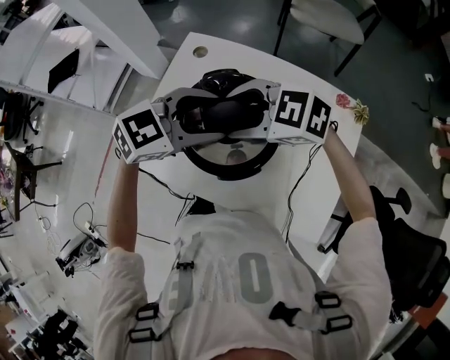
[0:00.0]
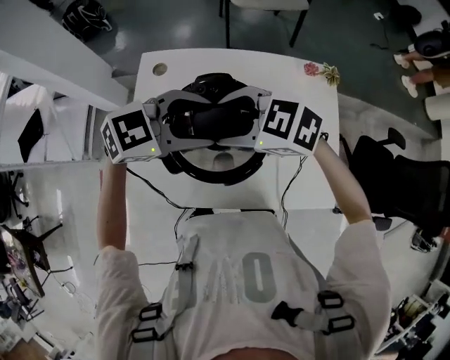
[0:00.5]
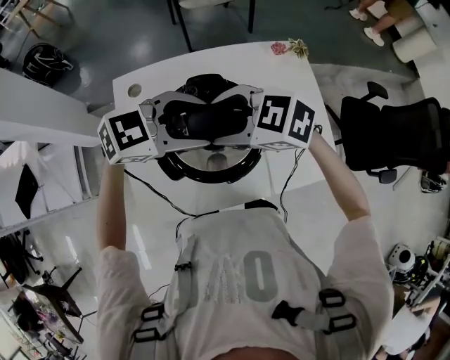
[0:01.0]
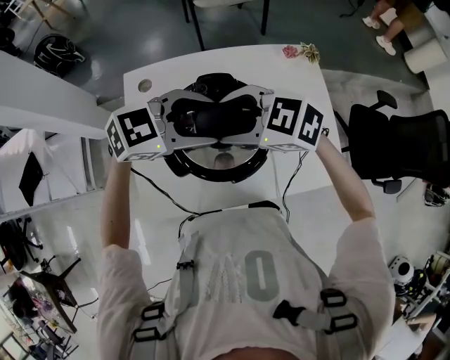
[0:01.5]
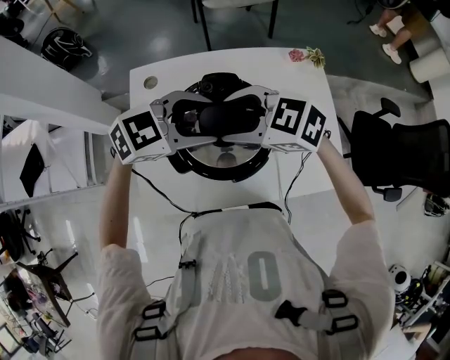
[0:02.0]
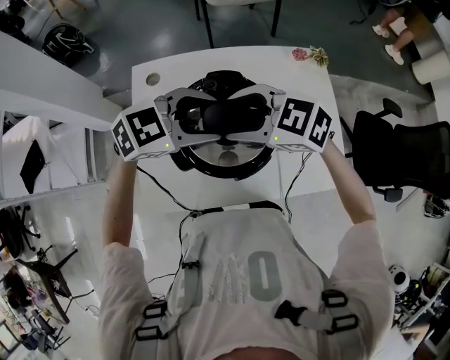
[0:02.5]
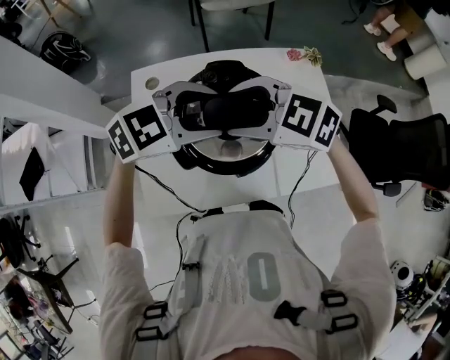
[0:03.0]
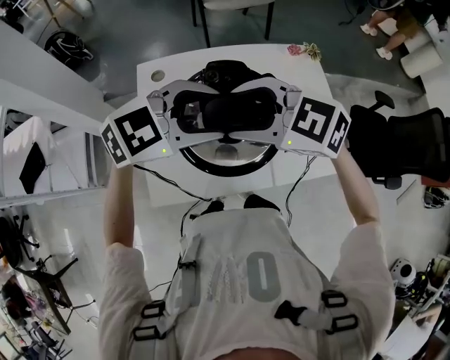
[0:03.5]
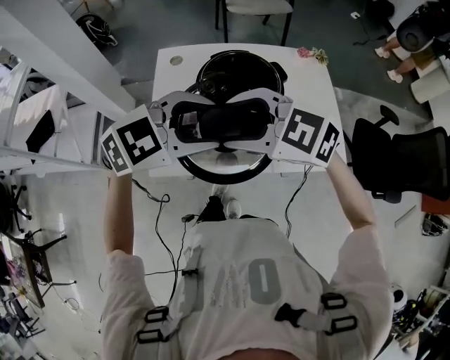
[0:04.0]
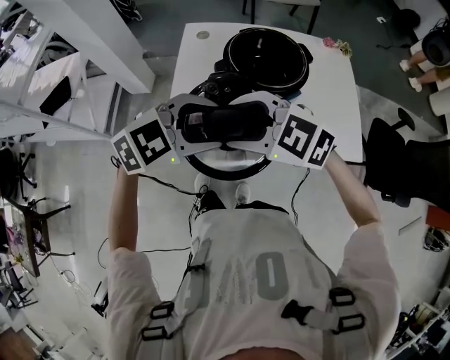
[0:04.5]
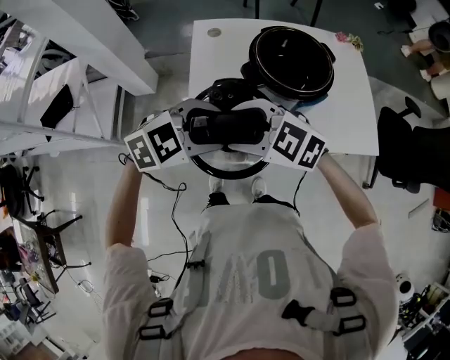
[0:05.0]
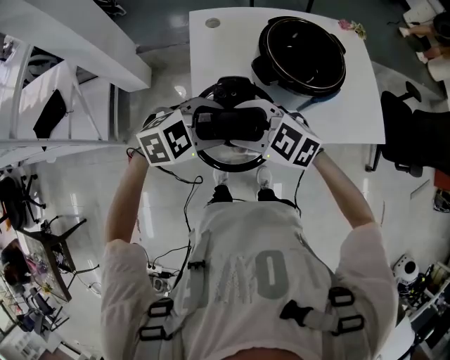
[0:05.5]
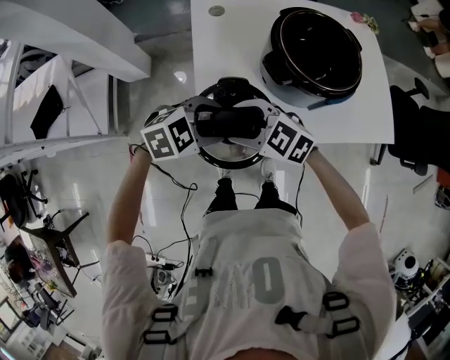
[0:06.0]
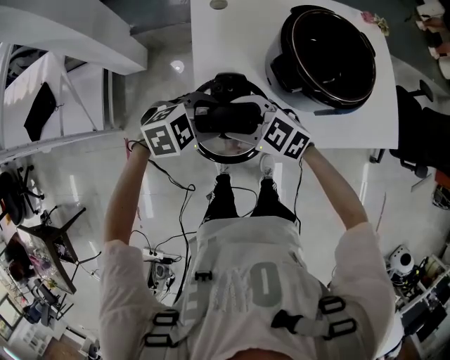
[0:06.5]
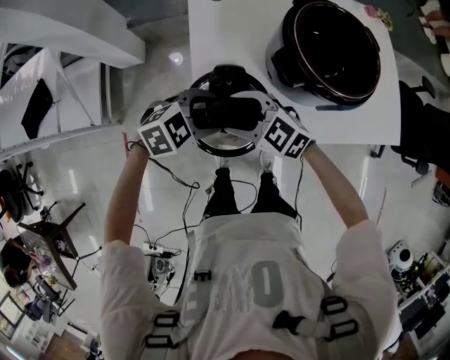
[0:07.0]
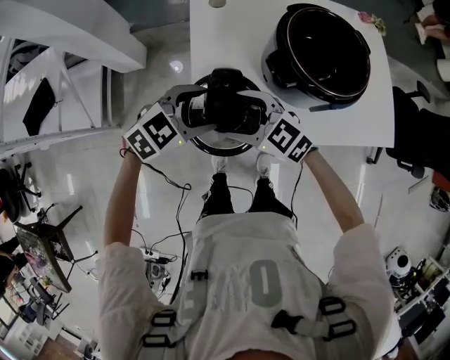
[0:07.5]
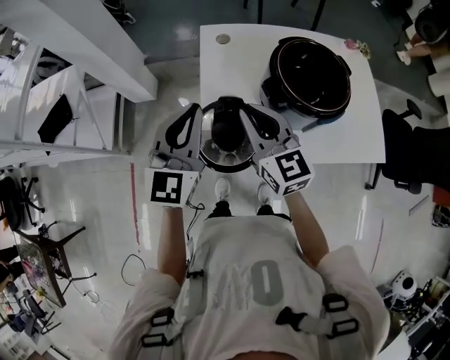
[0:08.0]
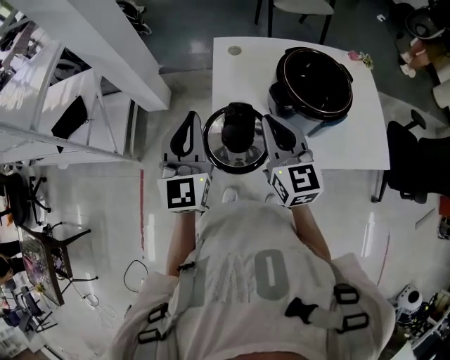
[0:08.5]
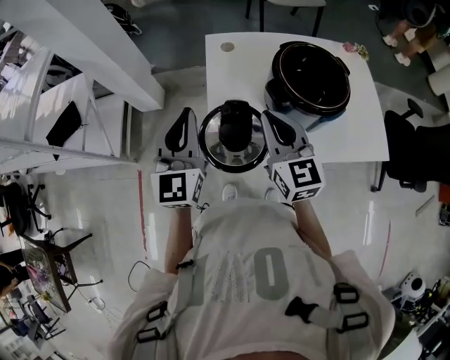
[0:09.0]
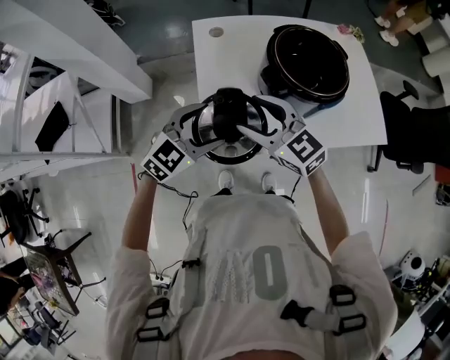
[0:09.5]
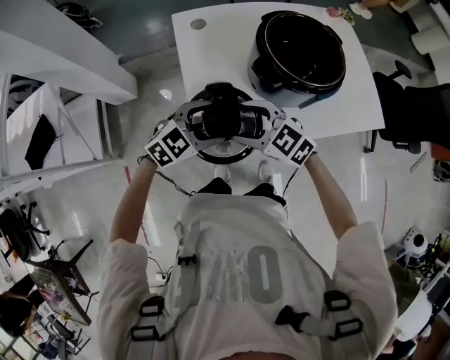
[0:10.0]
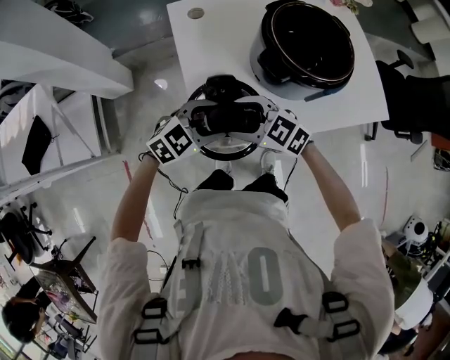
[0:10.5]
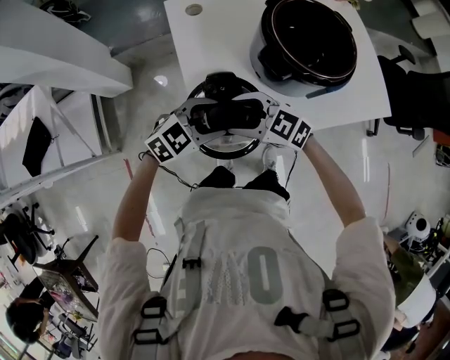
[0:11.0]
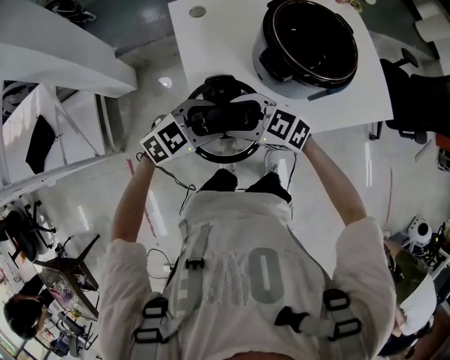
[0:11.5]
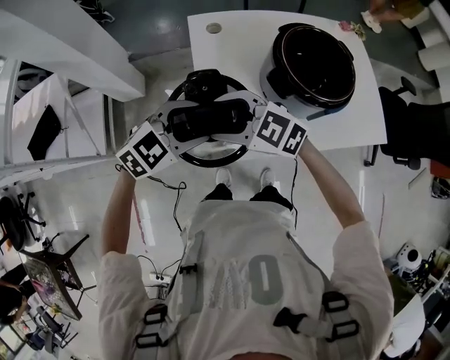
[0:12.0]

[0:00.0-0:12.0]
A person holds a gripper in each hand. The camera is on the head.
0:00.0 to 0:02.0: The left gripper swivels approximately 30 degrees. Meanwhile the right gripper swivels some 30 degrees.
0:02.0 to 0:04.0: The left gripper shifts by some 20 cm, while the right gripper changes place by approximately 20 cm.
0:04.0 to 0:06.0: Both grippers move downward, approximately 20 cm. The left gripper swivels roughly 20 degrees.
0:06.0 to 0:08.0: The grippers both shift upward by about 15 cm. The right gripper swivels roughly 50 degrees, and closes up; the left gripper points its fingers some 50 degrees further upward, and closes.
0:08.0 to 0:10.0: The right gripper goes roughly 15 cm downward, rotates about 40 degrees, and opens its fingers, while the left gripper shifts approximately 20 cm downward, tilts its fingers about 30 degrees downward, and opens its fingers.
0:10.0 to 0:12.0: The left gripper travels upward by some 10 cm. Meanwhile the right gripper moves roughly 10 cm.

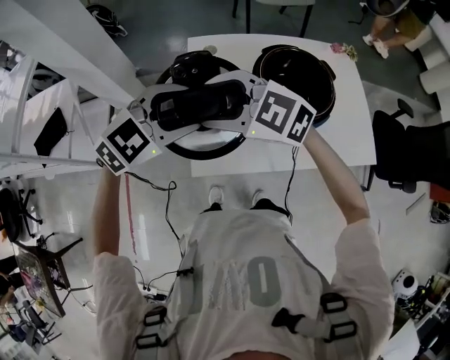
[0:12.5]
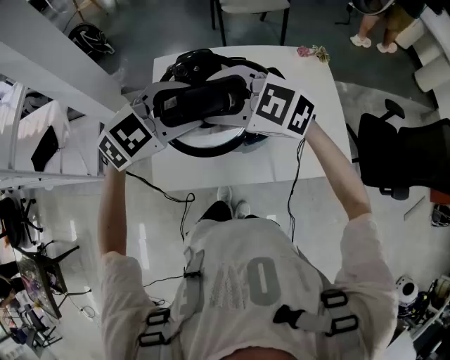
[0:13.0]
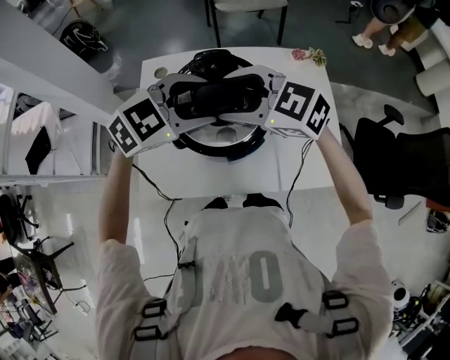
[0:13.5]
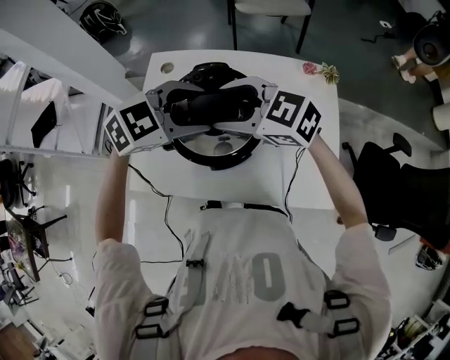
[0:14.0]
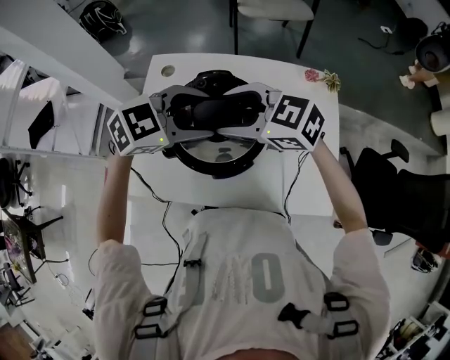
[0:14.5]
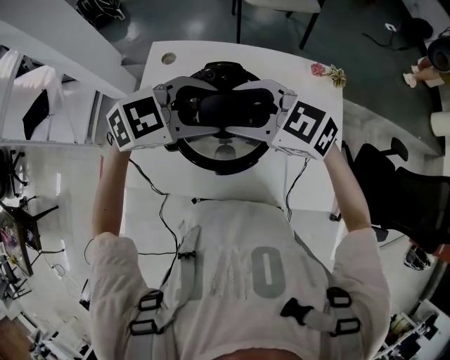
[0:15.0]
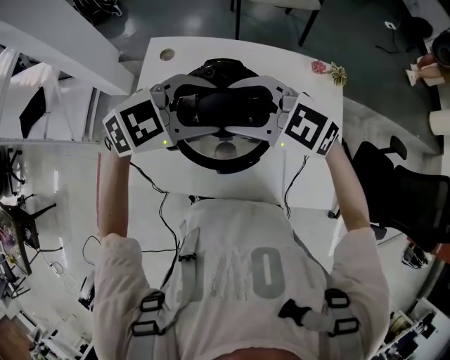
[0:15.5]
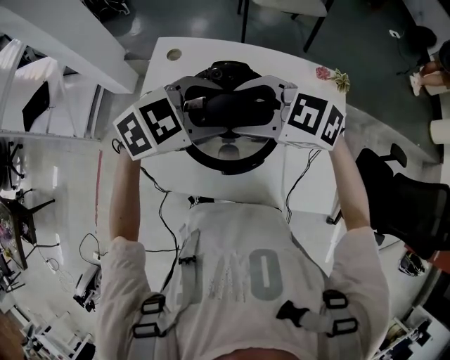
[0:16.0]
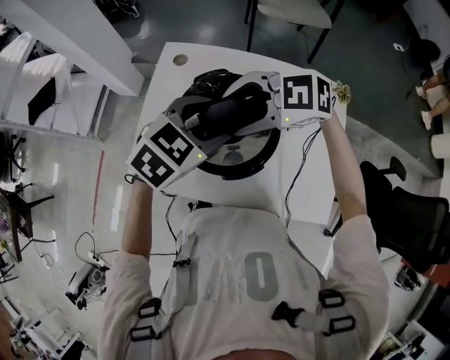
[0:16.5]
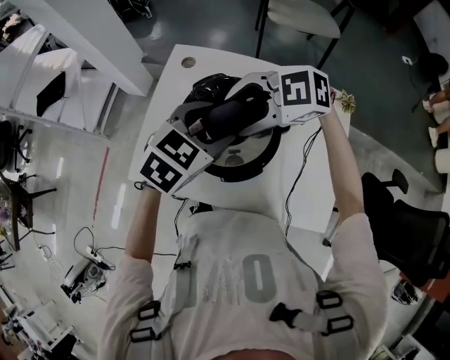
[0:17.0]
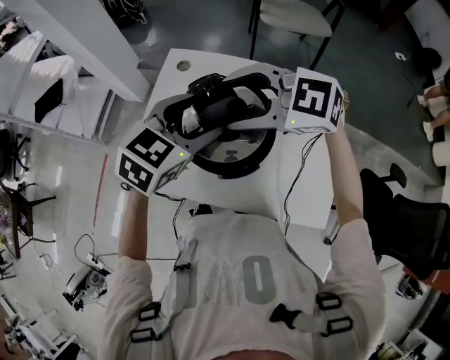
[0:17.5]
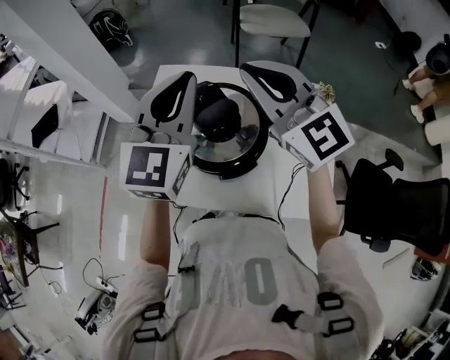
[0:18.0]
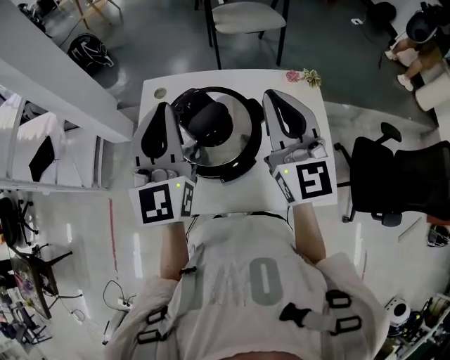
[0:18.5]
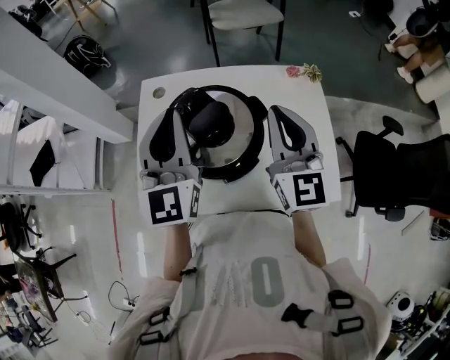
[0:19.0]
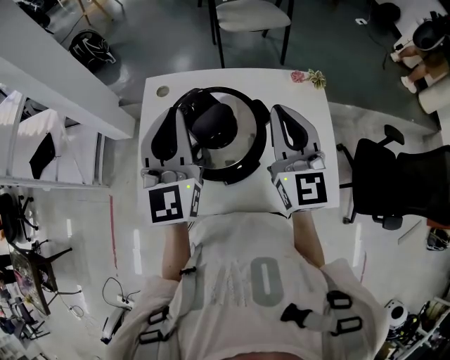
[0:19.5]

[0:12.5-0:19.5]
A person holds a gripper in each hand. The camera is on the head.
0:12.5 to 0:14.5: The right gripper moves about 30 cm. Meanwhile the left gripper moves about 30 cm.
0:14.5 to 0:16.0: The grippers move only a little.
0:16.0 to 0:17.5: The right gripper travels upward by some 5 cm; the left gripper moves approximately 5 cm, and swivels some 40 degrees.
0:17.5 to 0:19.5: The right gripper moves roughly 10 cm upward and comes back, angles its fingers upward, by approximately 30 degrees, and closes. The left gripper heads upward, covering roughly 10 cm, angles its fingers upward, by about 40 degrees, and closes its fingers.

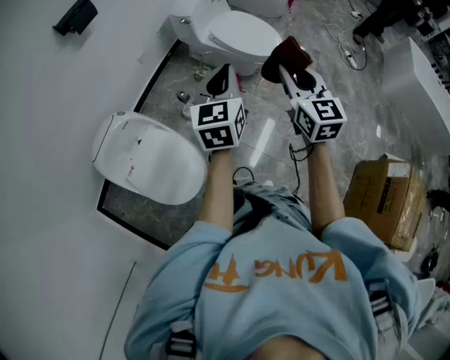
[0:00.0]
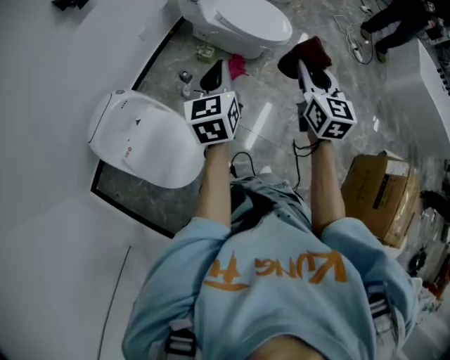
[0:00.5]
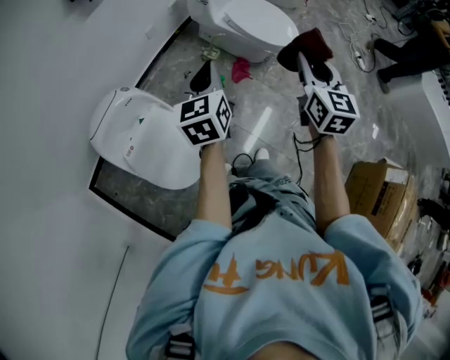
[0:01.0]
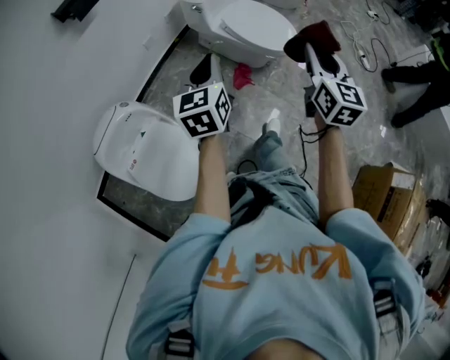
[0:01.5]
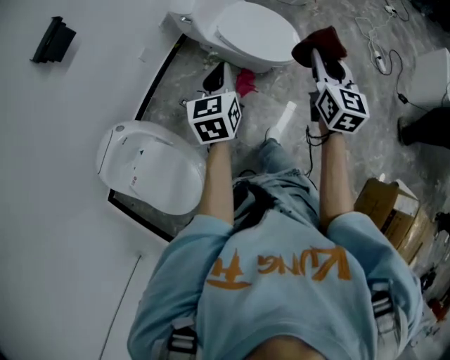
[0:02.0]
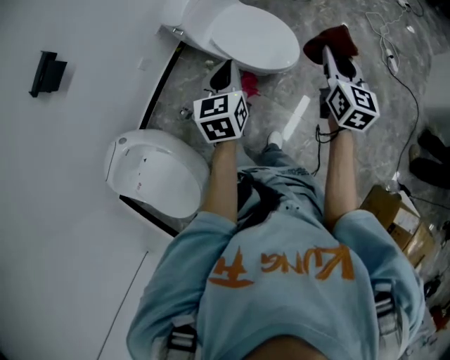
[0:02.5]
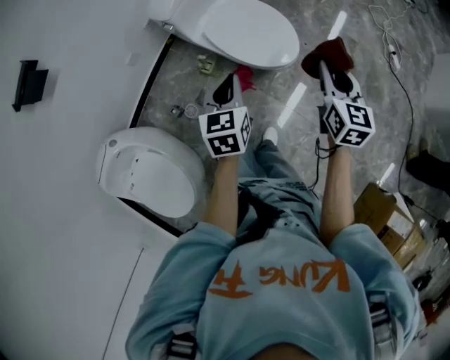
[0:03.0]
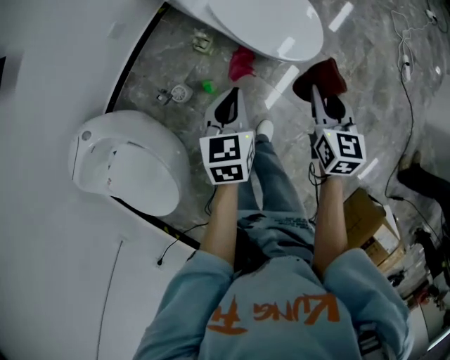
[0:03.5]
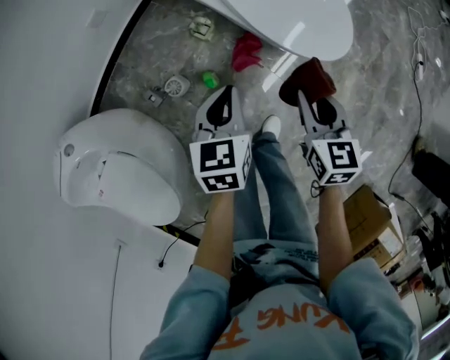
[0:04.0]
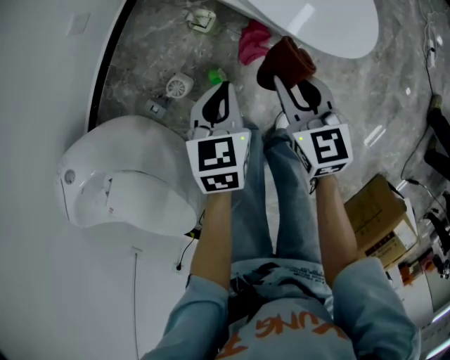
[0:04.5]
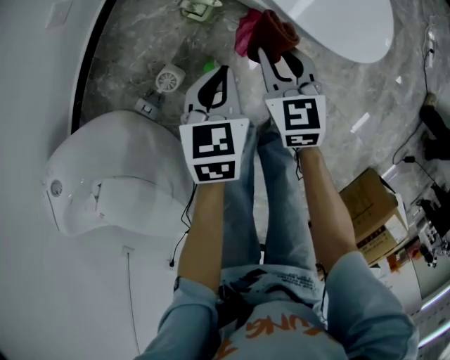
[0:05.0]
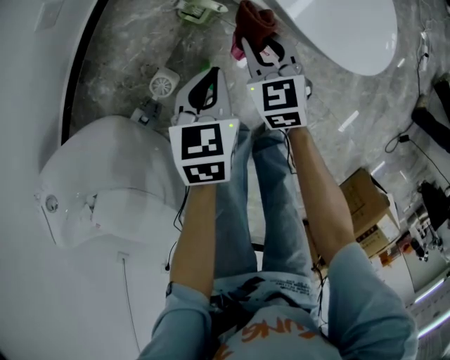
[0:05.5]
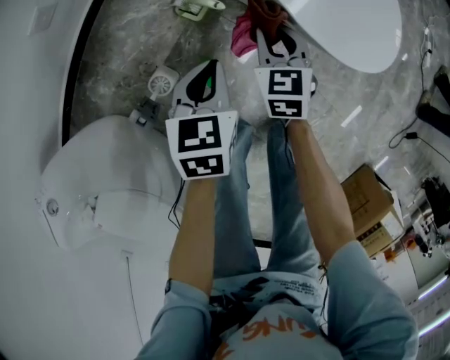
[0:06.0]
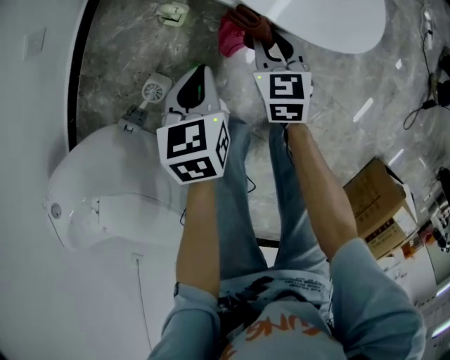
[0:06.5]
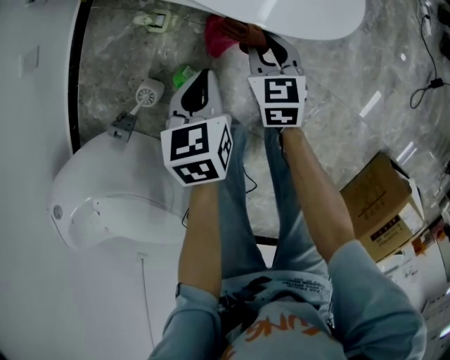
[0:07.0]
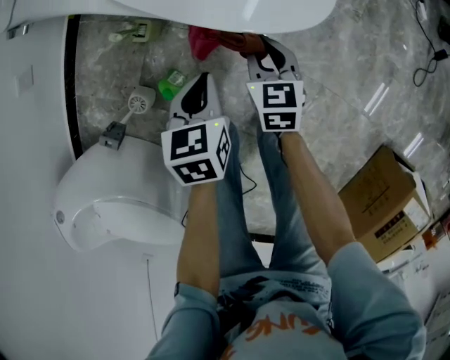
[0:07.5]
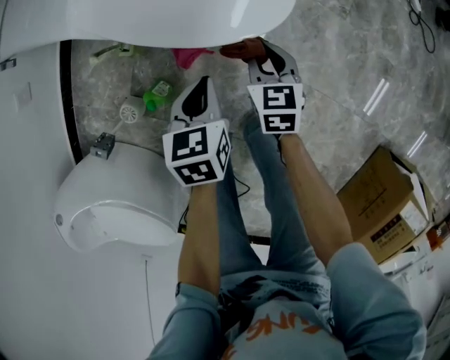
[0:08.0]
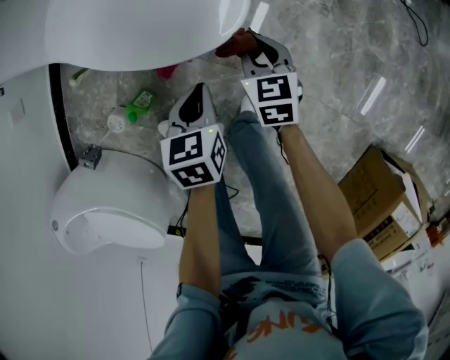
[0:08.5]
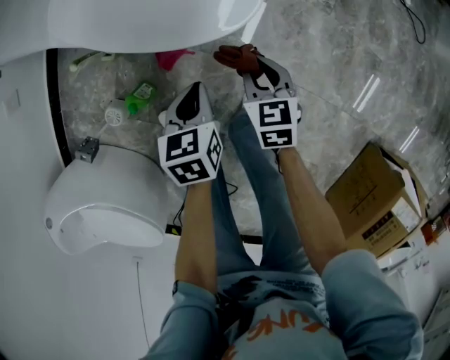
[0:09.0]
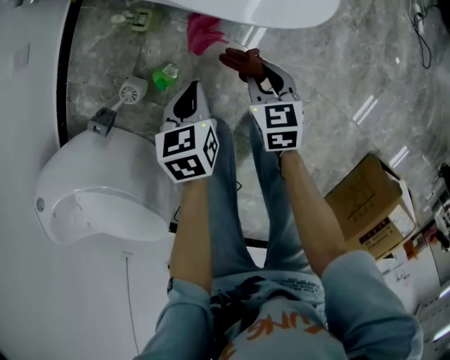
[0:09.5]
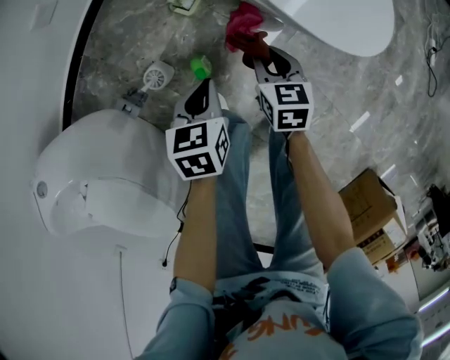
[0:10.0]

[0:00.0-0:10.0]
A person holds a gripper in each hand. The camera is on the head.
0:00.0 to 0:02.0: The right gripper goes about 30 cm forward and to the right. The left gripper is displaced forward by about 20 cm.
0:02.0 to 0:04.0: The two grippers go roughly 35 cm downward. The right gripper turns by about 30 degrees, while the left gripper rotates approximately 20 degrees.
0:04.0 to 0:06.0: The right gripper is displaced downward, forward and to the left by roughly 30 cm; the left gripper travels downward, to the left and forward by some 20 cm.
0:06.0 to 0:08.0: Both grippers move to the right, roughly 30 cm. The right gripper turns by about 20 degrees.
0:08.0 to 0:10.0: The two grippers go roughly 25 cm to the left.
